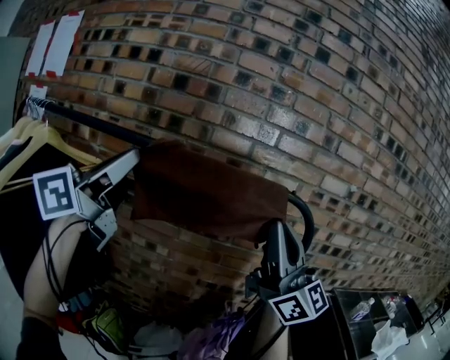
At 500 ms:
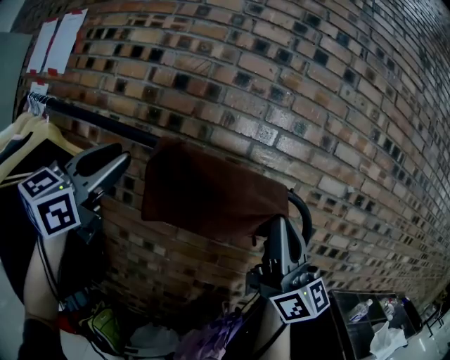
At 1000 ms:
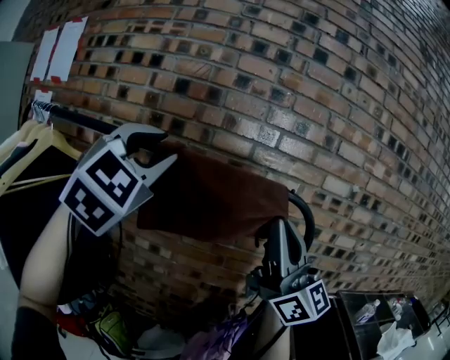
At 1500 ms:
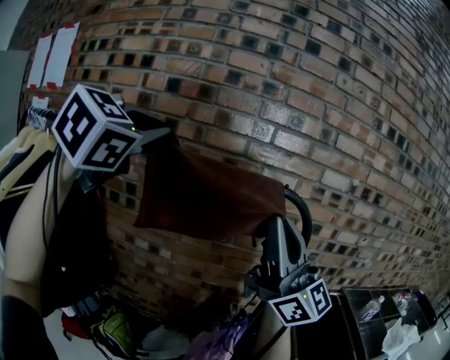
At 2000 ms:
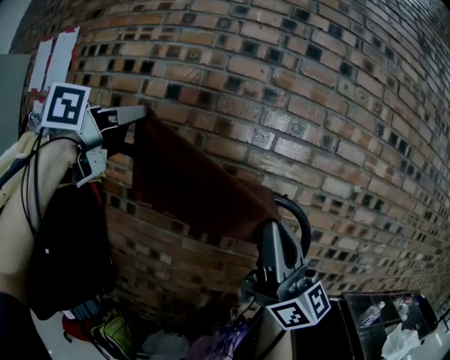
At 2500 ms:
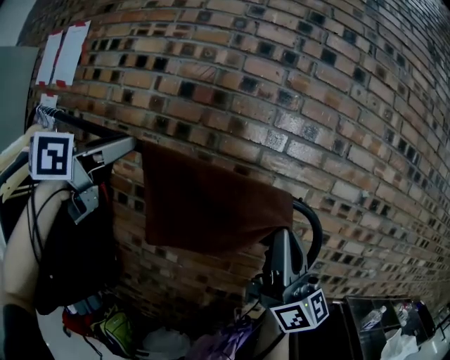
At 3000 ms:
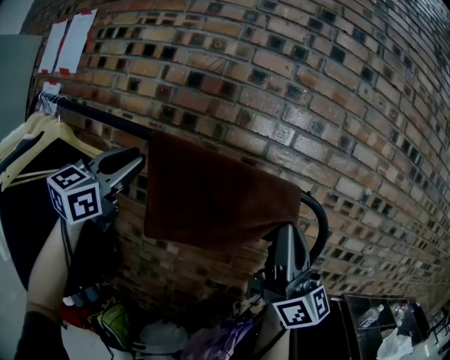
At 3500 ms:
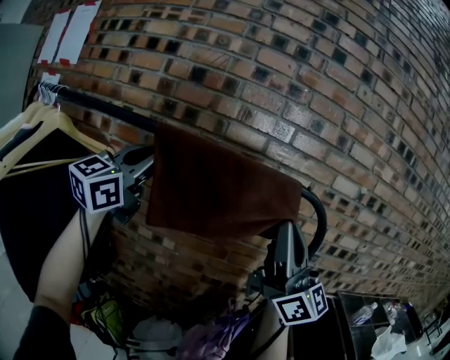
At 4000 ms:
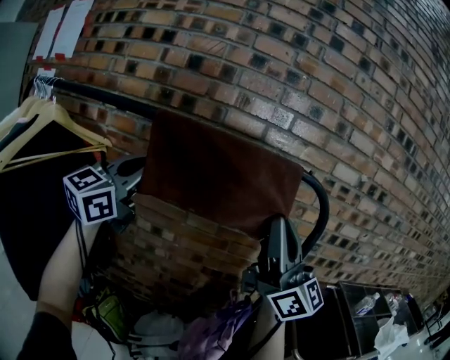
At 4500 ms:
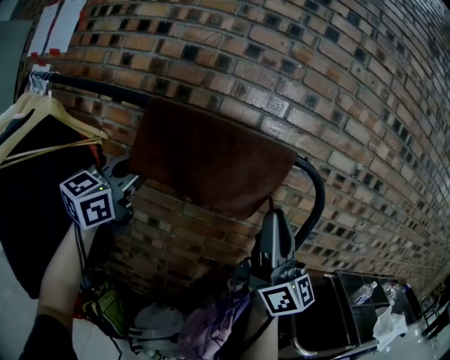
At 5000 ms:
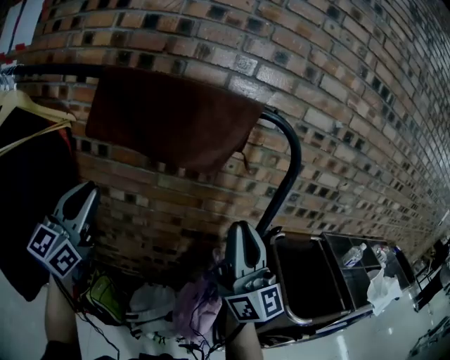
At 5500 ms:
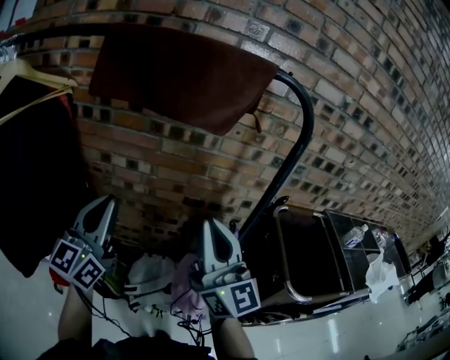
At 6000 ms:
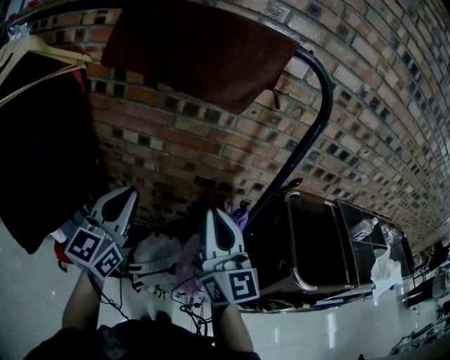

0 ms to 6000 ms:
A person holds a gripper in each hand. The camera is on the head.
0 ms to 2000 ms: The left gripper is displaced upward by roughly 10 cm, and opens, then closes again.
2000 ms to 4000 ms: The right gripper travels downward by approximately 5 cm. The left gripper is displaced downward by some 20 cm, swivels about 20 degrees, and opens, then closes again.
4000 ms to 6000 ms: The right gripper moves downward, some 25 cm, and swivels some 30 degrees; the left gripper is displaced downward and backward by approximately 30 cm.

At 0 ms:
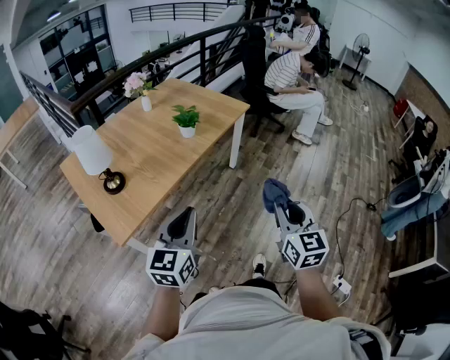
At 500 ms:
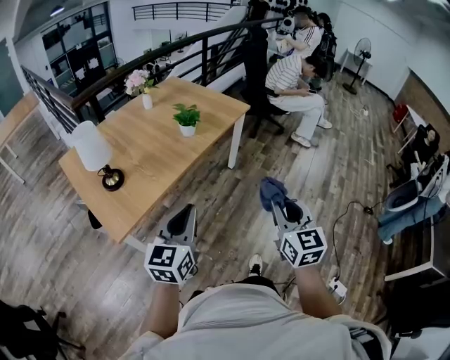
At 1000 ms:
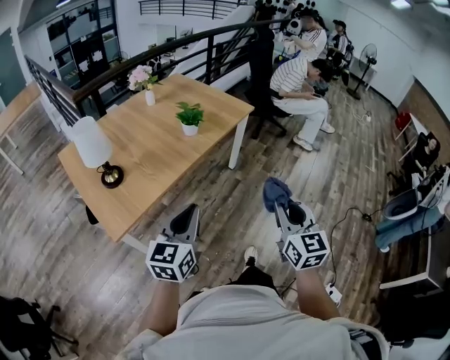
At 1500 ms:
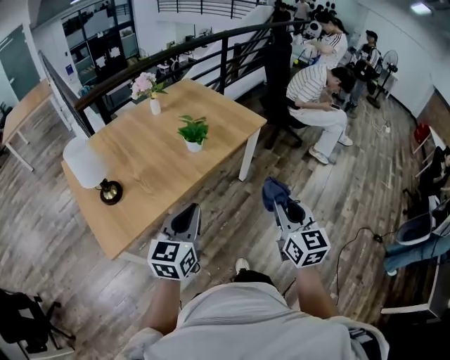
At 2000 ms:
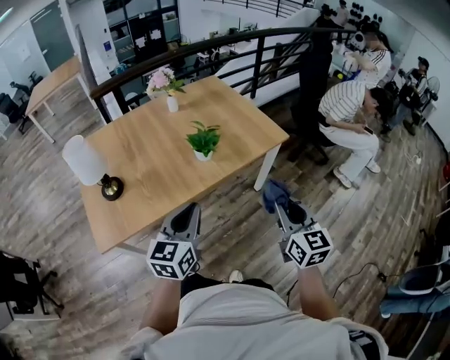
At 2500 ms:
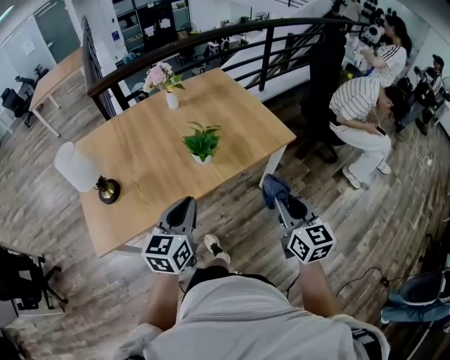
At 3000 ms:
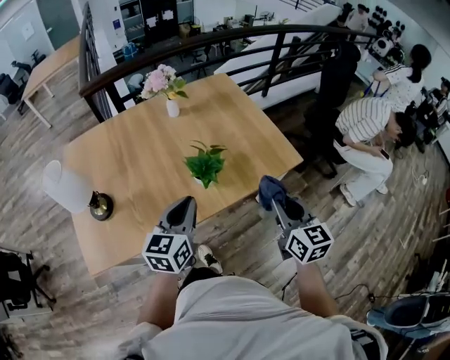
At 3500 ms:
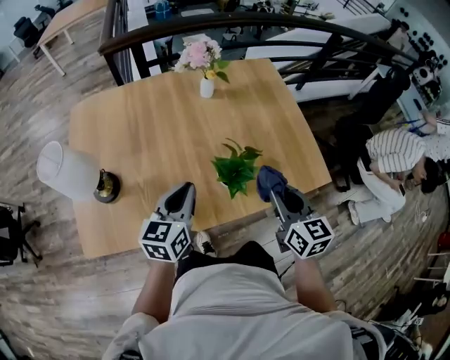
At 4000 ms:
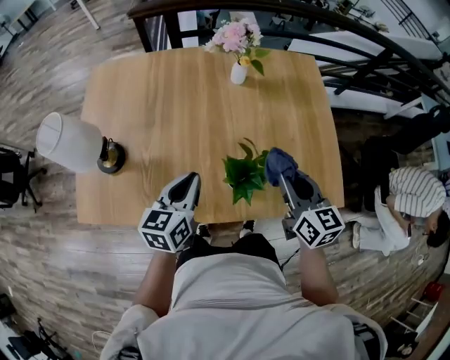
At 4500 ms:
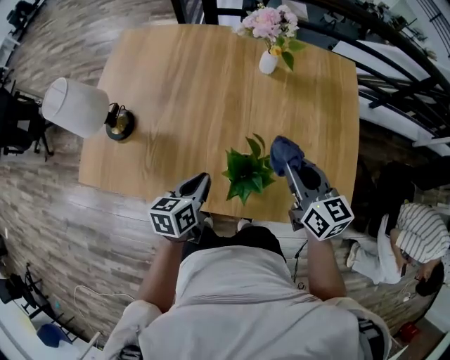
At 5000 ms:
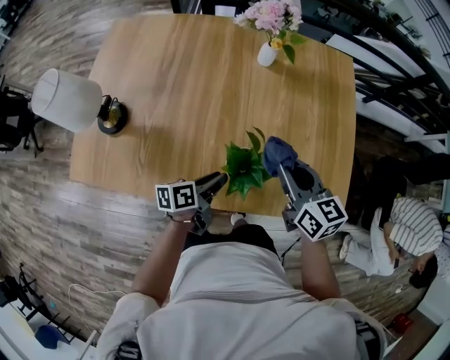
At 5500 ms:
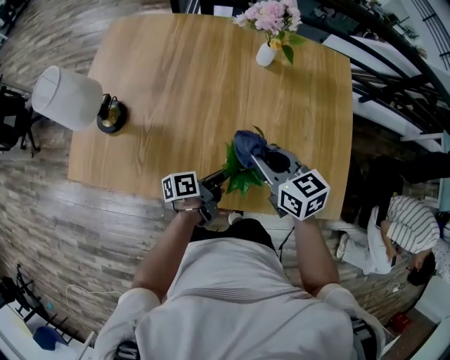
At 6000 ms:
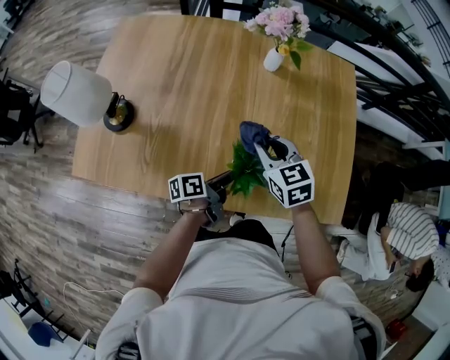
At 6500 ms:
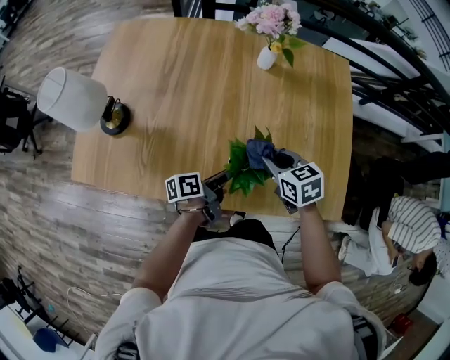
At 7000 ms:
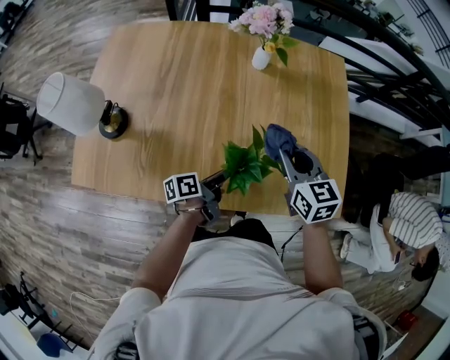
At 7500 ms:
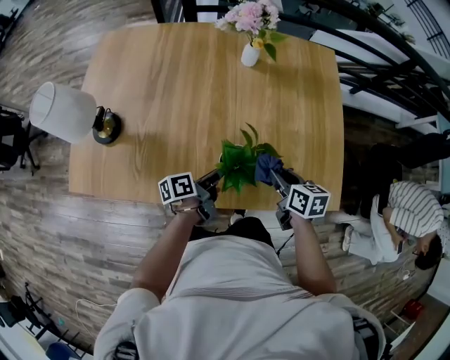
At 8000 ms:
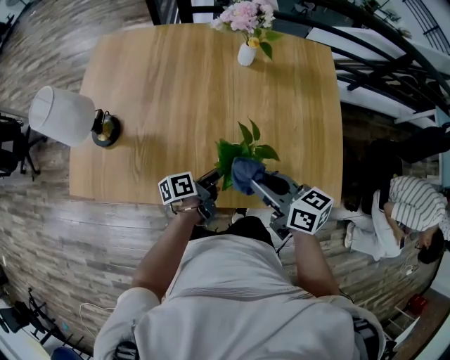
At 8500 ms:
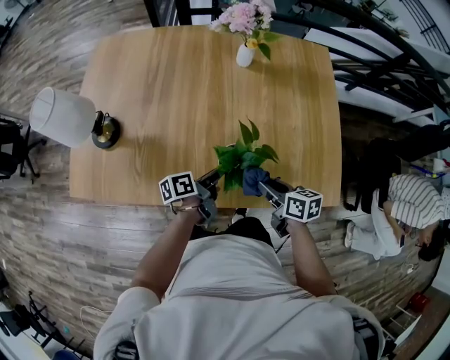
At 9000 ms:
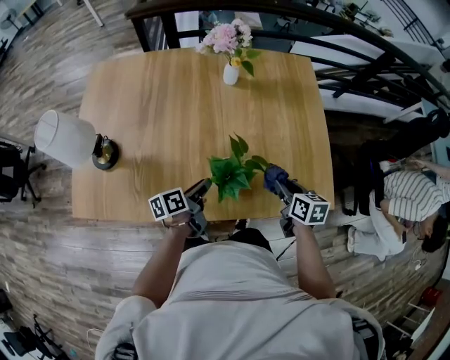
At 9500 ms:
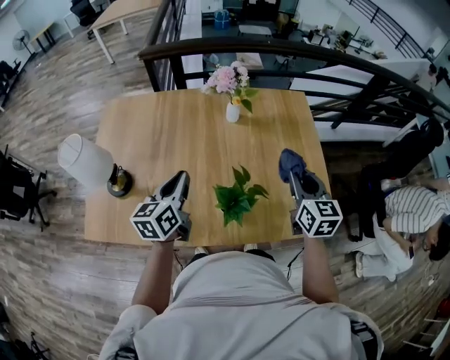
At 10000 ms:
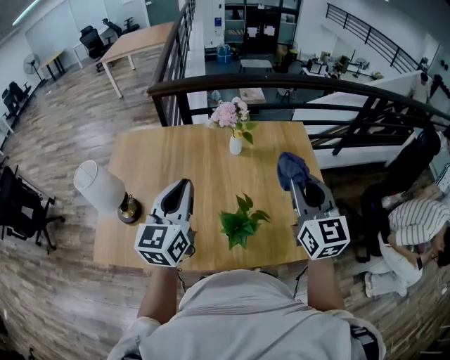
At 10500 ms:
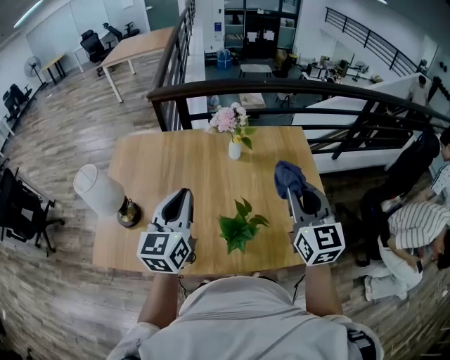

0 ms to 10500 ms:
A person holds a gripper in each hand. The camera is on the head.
0 ms to 2000 ms: Both grippers move forward, about 30 cm. The right gripper changes its angle by approximately 20 degrees.
2000 ms to 4000 ms: The left gripper moves roughly 35 cm, and swivels some 30 degrees; the right gripper moves approximately 40 cm, and rotates roughly 40 degrees.
4000 ms to 6500 ms: The left gripper moves downward and to the right, approximately 20 cm, rolls counterclockwise, seen from behind, by some 60 degrees, and opens up; the right gripper is displaced downward by some 15 cm, and turns by approximately 40 degrees.
6500 ms to 8500 ms: The right gripper swings up and down, some 10 cm each way, with 3 reversals, and rotates some 30 degrees.
8500 ms to 10500 ms: Both grippers move upward, approximately 35 cm. The right gripper tilts its fingers approximately 30 degrees upward. Meanwhile the left gripper twists some 70 degrees clockwise, seen from behind.

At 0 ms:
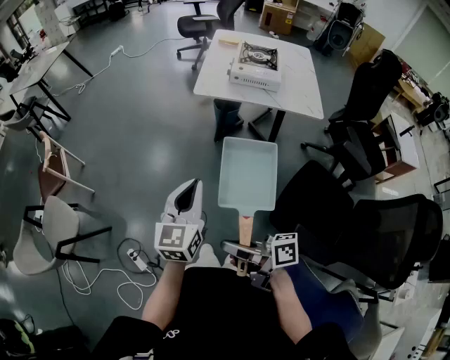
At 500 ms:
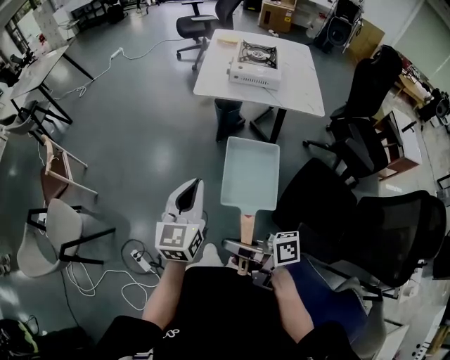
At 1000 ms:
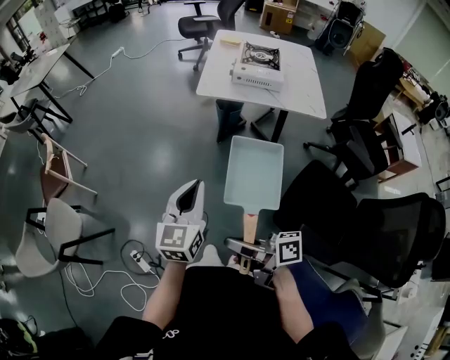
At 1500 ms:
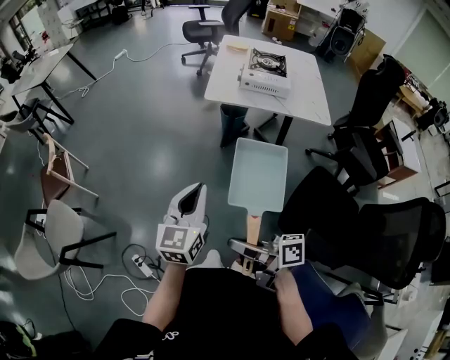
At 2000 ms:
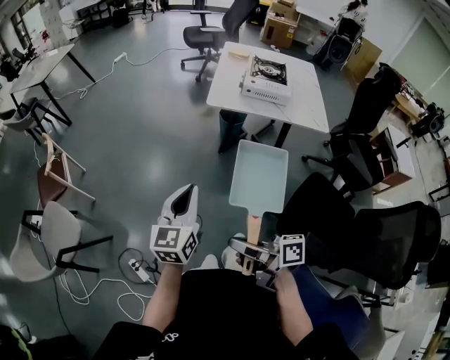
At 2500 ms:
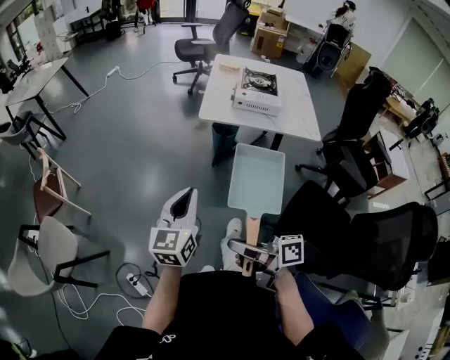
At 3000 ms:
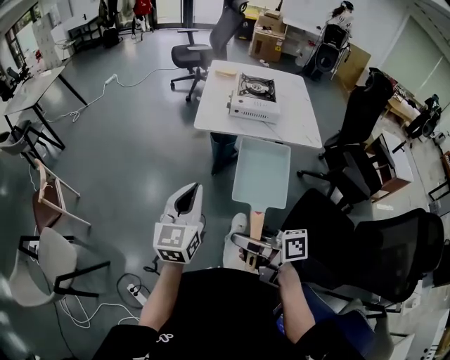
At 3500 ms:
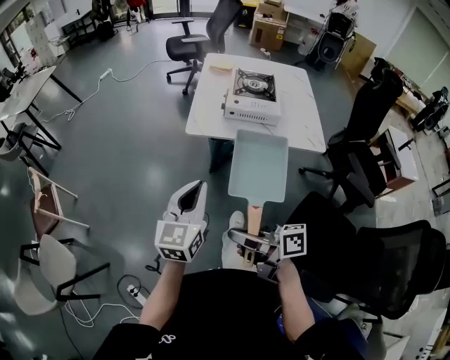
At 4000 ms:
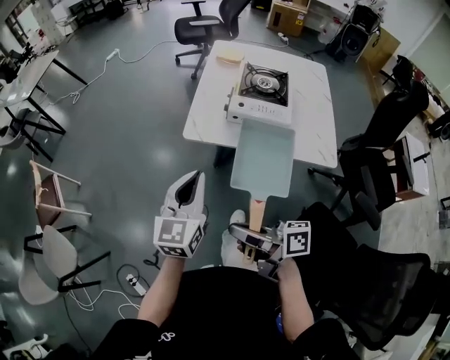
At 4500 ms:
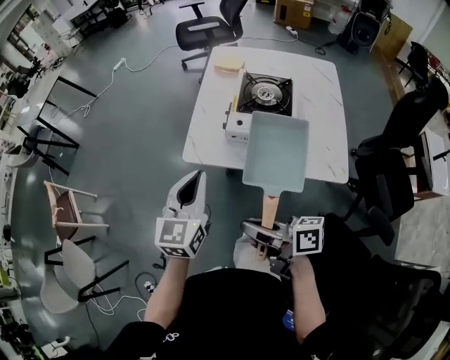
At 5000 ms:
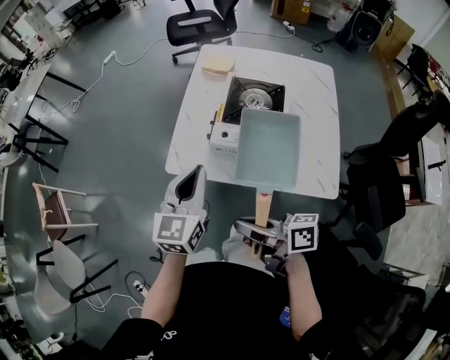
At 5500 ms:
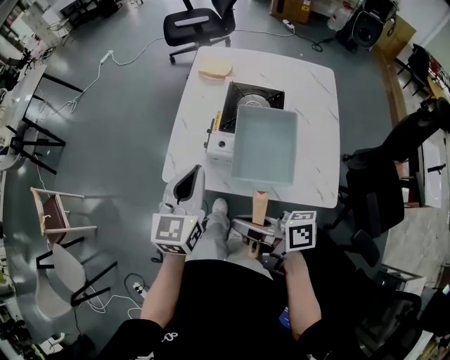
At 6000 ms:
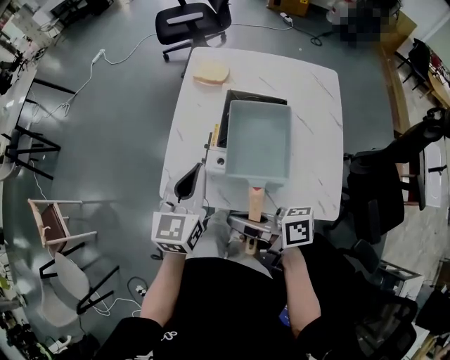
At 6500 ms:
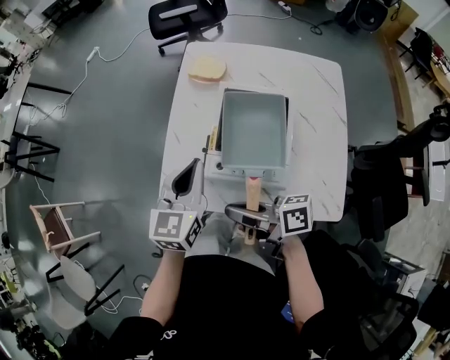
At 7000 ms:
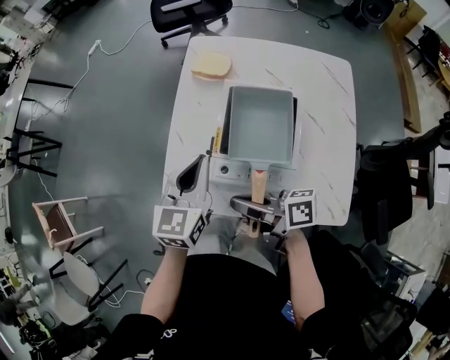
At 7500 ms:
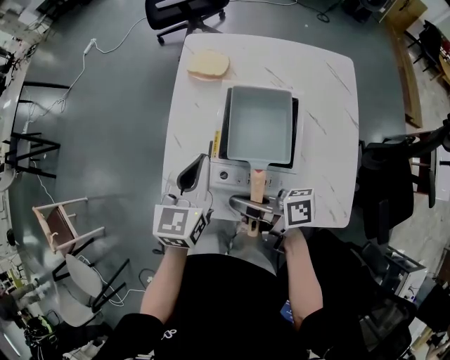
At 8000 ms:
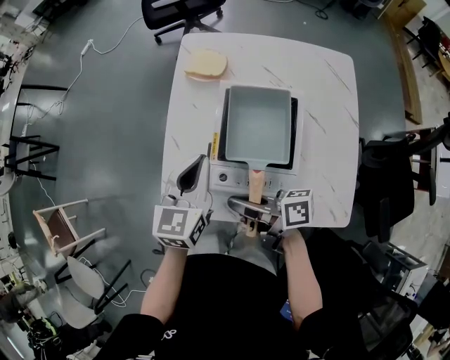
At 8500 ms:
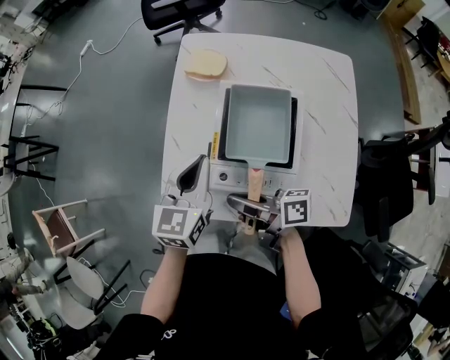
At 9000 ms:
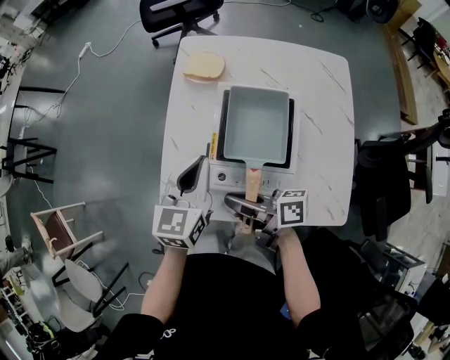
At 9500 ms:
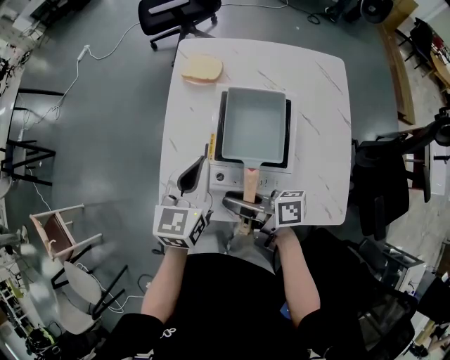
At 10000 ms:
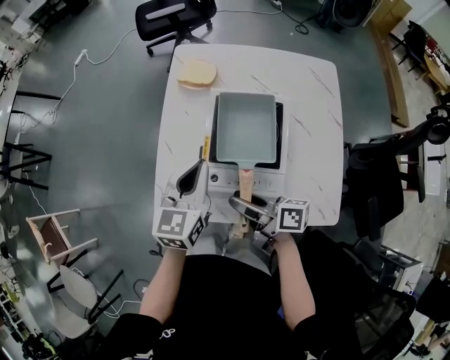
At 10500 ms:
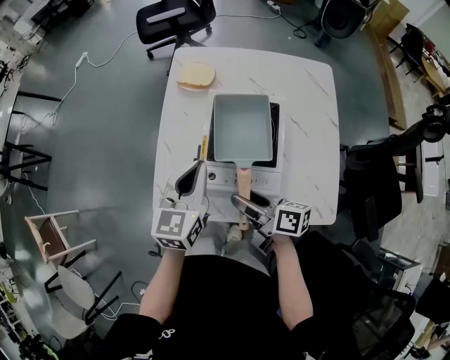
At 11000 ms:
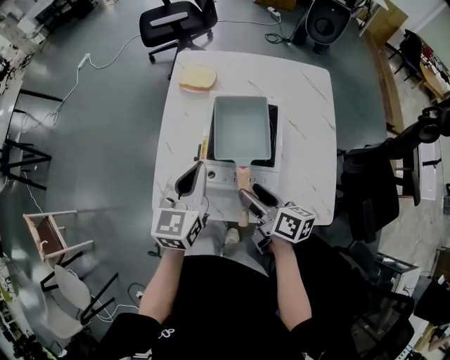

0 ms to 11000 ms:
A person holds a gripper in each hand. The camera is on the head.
0 ms to 2000 ms: The right gripper changes place by about 5 cm. The left gripper travels to the left by roughly 5 cm.
2000 ms to 3500 ms: The right gripper shifts about 20 cm forward and to the right. Meanwhile the left gripper heads to the right and forward, covering approximately 20 cm.
3500 ms to 5500 ms: Both grippers move forward and to the right, approximately 35 cm.
5500 ms to 7500 ms: The left gripper shifts about 15 cm forward, to the right and downward, while the right gripper is displaced forward by roughly 15 cm.
7500 ms to 9000 ms: Both grippers stay about where they are.
9000 ms to 11000 ms: The right gripper goes some 10 cm to the right, changes its angle by roughly 30 degrees, and opens up.
